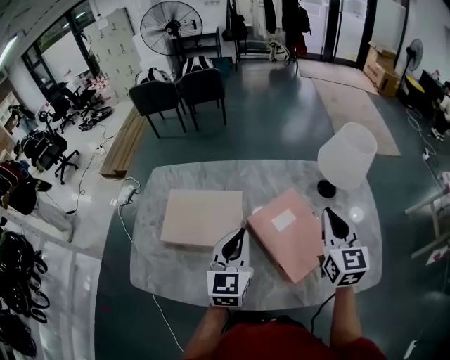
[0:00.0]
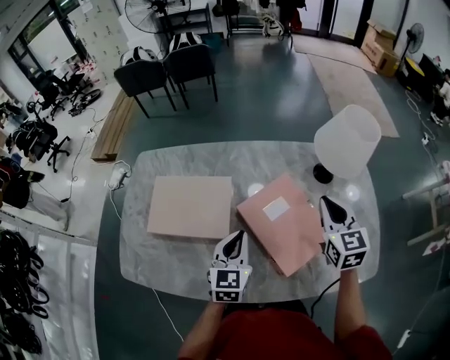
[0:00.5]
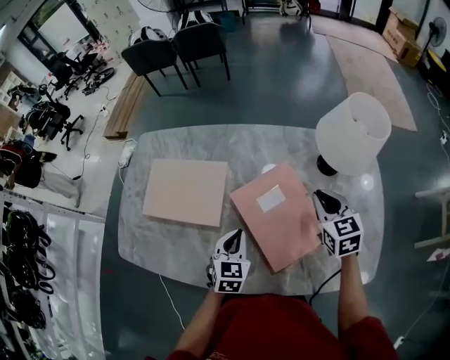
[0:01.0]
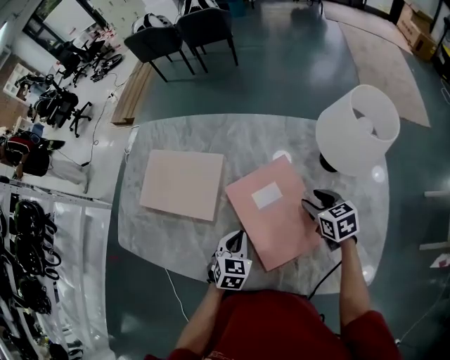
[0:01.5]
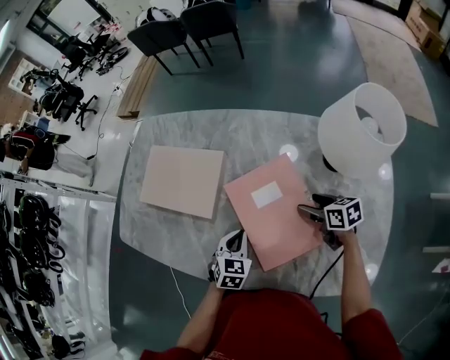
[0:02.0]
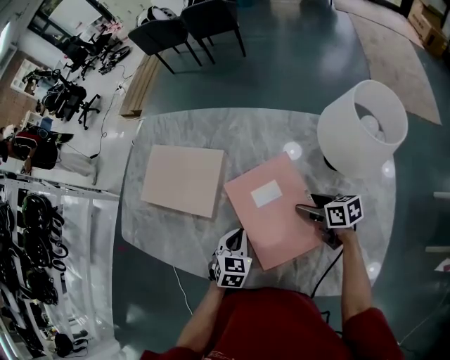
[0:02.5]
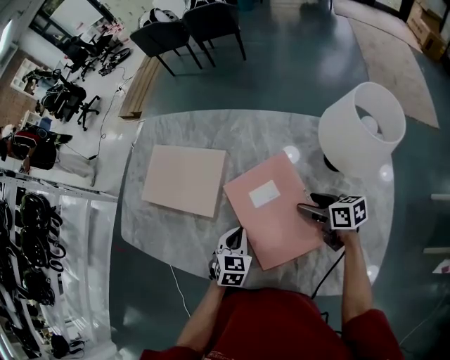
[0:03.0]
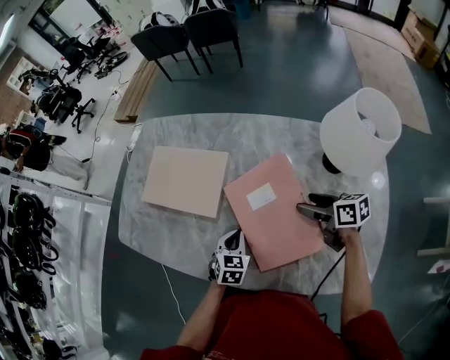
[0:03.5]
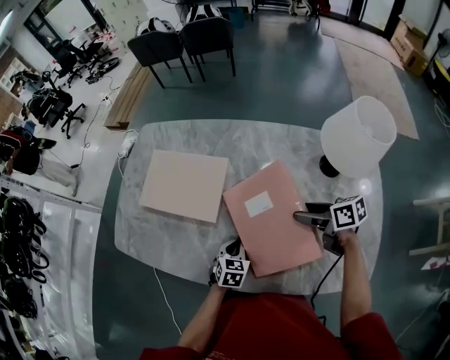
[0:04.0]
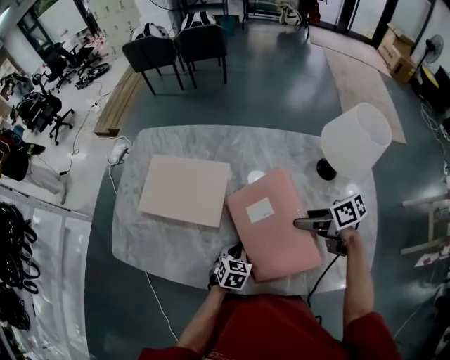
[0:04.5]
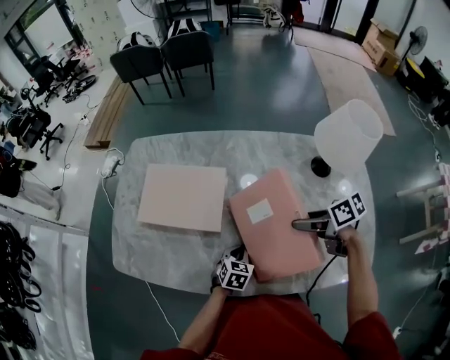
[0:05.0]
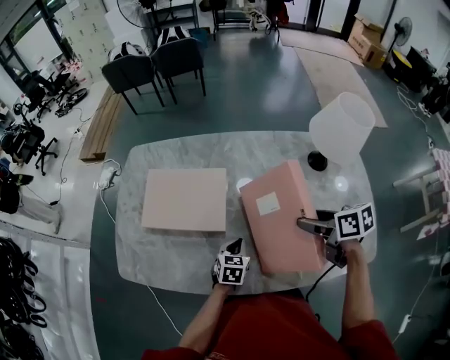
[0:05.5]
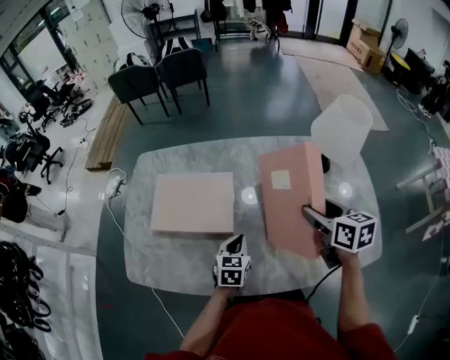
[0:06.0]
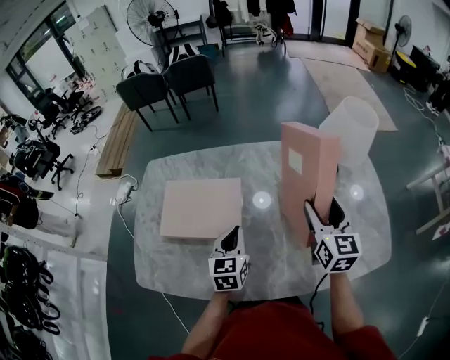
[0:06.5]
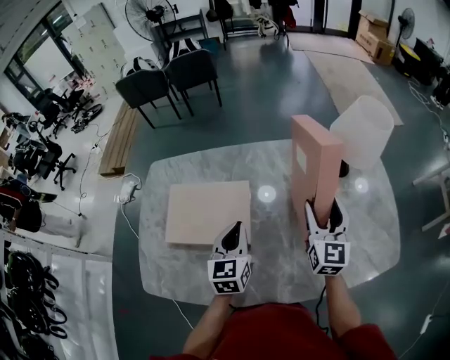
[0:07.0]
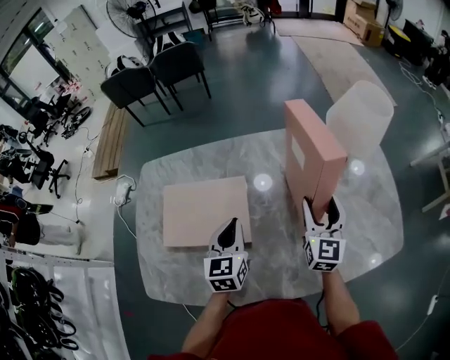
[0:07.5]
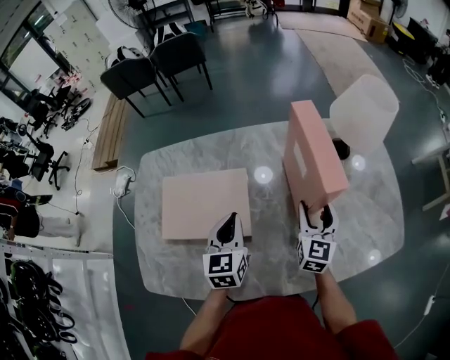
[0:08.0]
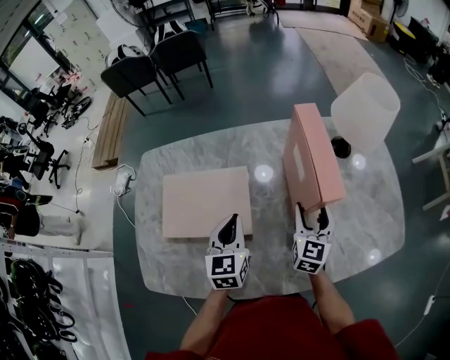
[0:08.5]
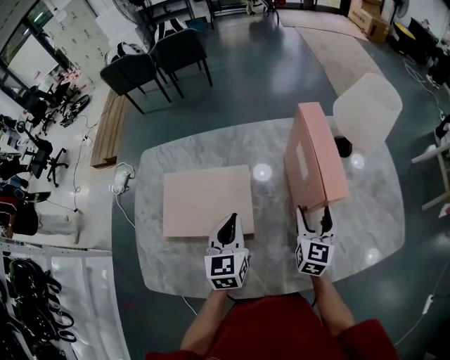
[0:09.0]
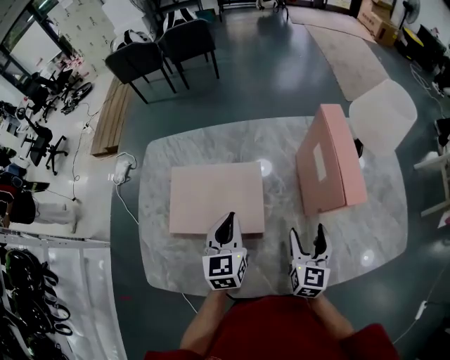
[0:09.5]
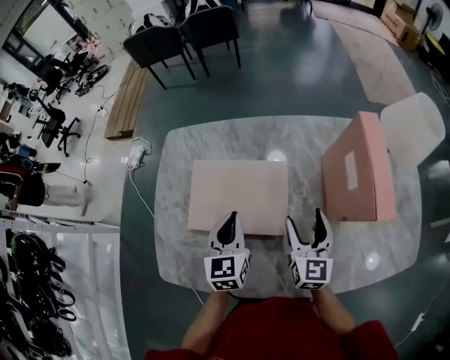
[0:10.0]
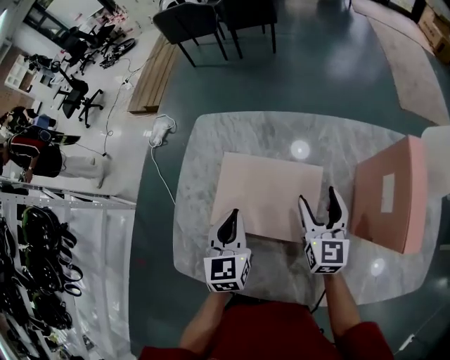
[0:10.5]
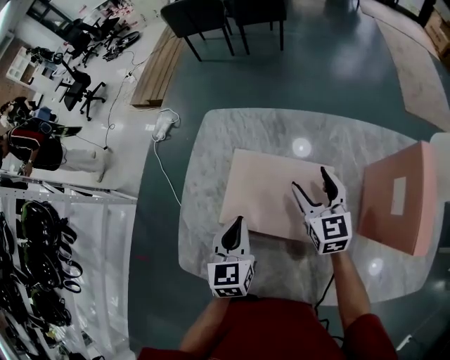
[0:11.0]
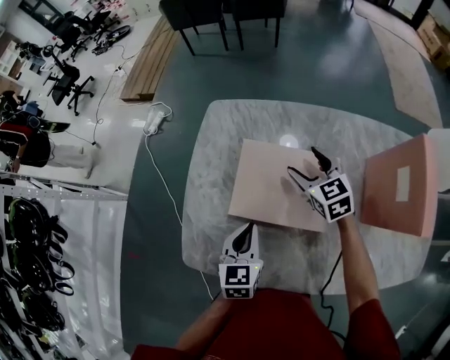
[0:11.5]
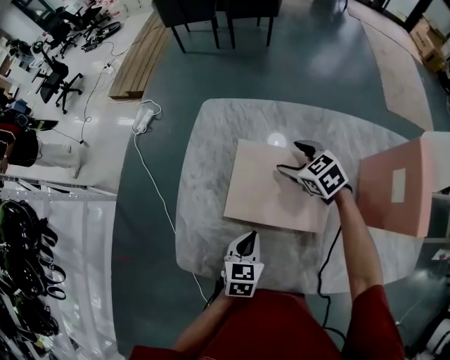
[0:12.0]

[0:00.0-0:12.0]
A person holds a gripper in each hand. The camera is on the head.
0:00.0 to 0:02.0: Both grippers move downward, approximately 25 cm. The right gripper swivels some 60 degrees, and opens. The left gripper points its fingers approximately 40 degrees further downward.
0:02.0 to 0:04.0: The right gripper is displaced upward and to the left by some 10 cm; the left gripper heads to the left, covering some 5 cm.
0:04.0 to 0:06.0: The right gripper shifts approximately 15 cm upward, and changes its angle by some 40 degrees; the left gripper is displaced upward by approximately 10 cm.
0:06.0 to 0:08.0: The right gripper heads downward, covering about 10 cm, and swivels approximately 40 degrees. The left gripper shifts approximately 15 cm upward, forward and to the left.
0:08.0 to 0:10.0: The two grippers go approximately 15 cm to the left.
0:10.0 to 0:12.0: The right gripper travels forward, to the left and downward by about 30 cm, and tips its fingers downward by some 30 degrees, while the left gripper travels downward, to the left and backward by roughly 15 cm, and turns by approximately 20 degrees.

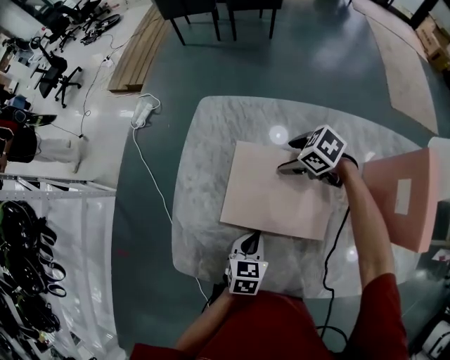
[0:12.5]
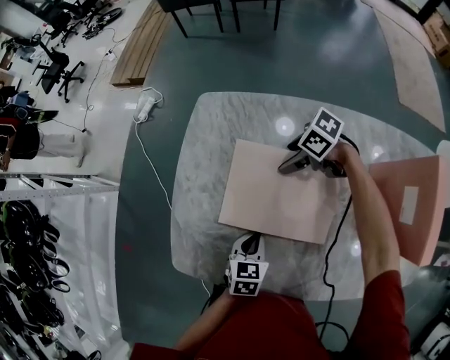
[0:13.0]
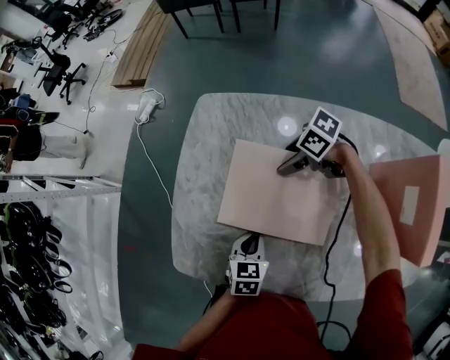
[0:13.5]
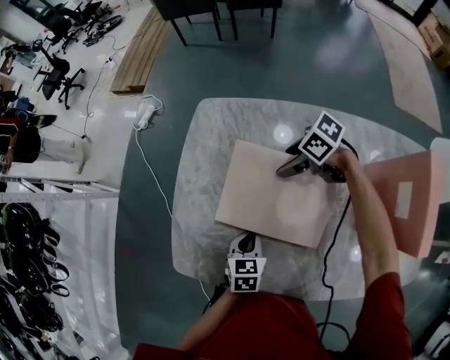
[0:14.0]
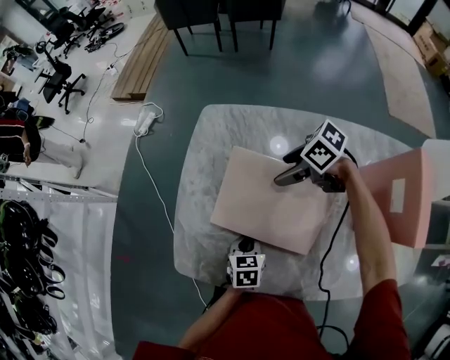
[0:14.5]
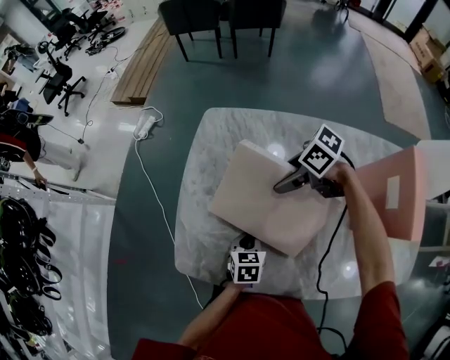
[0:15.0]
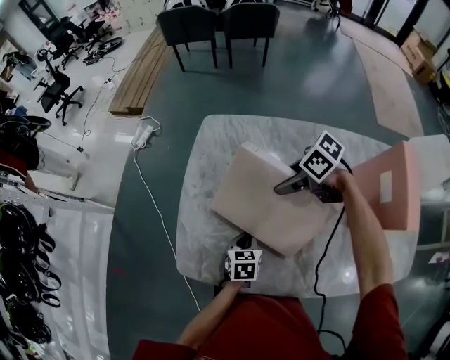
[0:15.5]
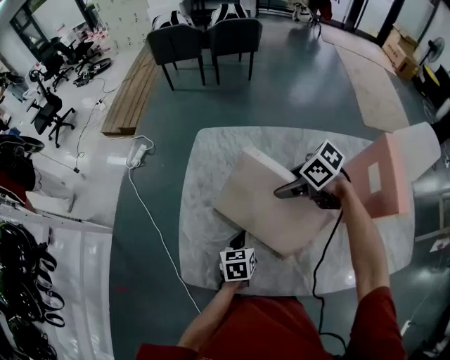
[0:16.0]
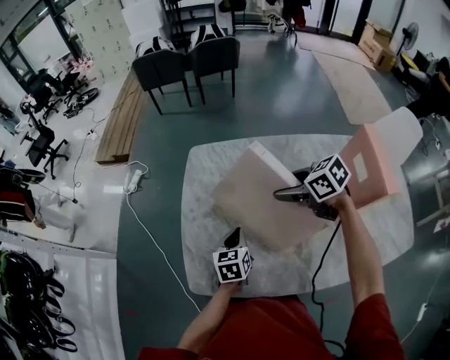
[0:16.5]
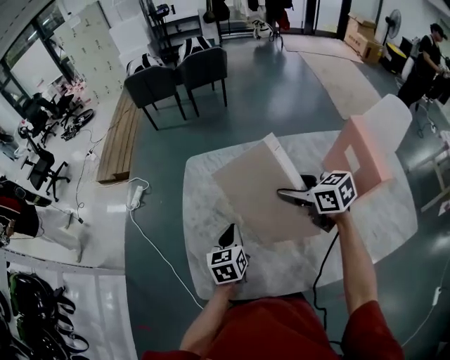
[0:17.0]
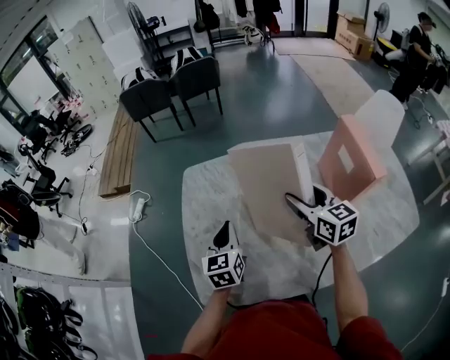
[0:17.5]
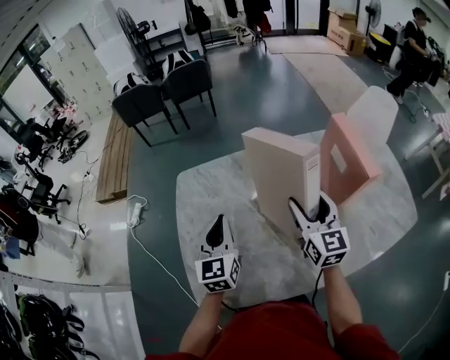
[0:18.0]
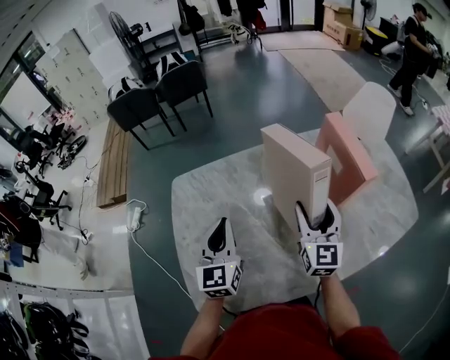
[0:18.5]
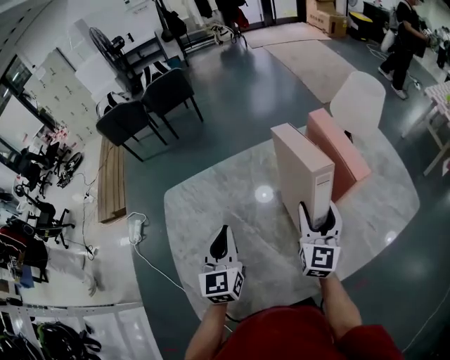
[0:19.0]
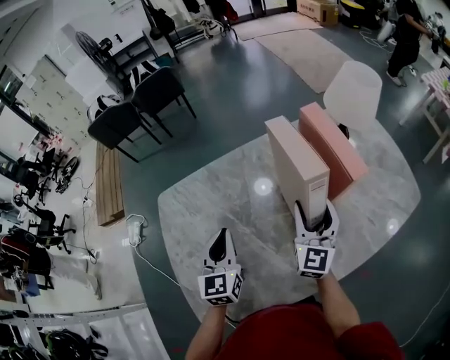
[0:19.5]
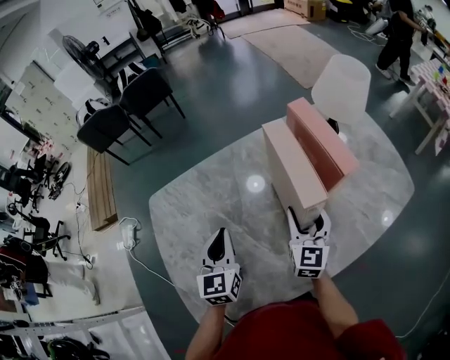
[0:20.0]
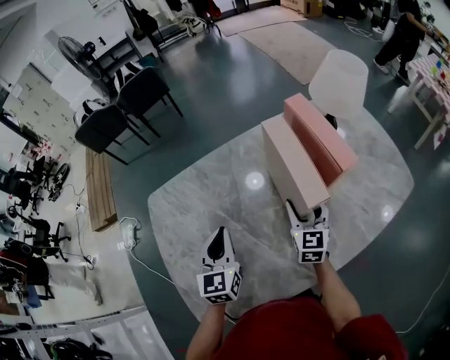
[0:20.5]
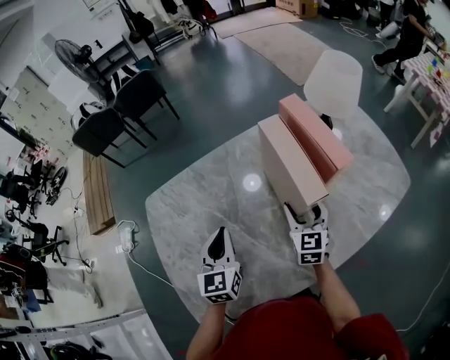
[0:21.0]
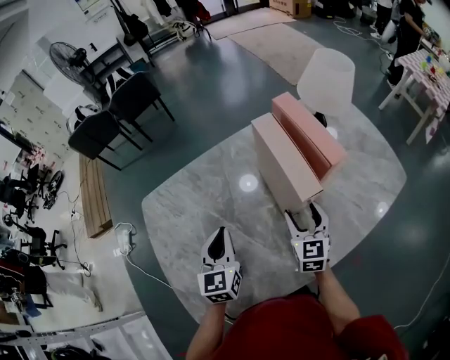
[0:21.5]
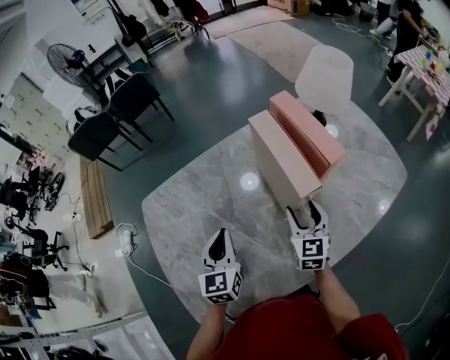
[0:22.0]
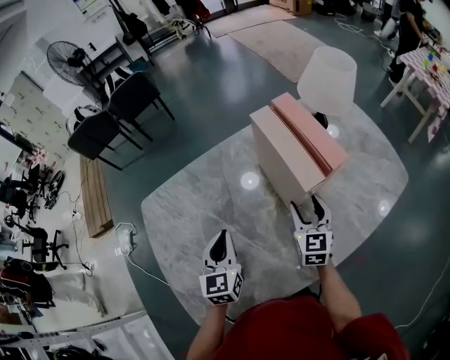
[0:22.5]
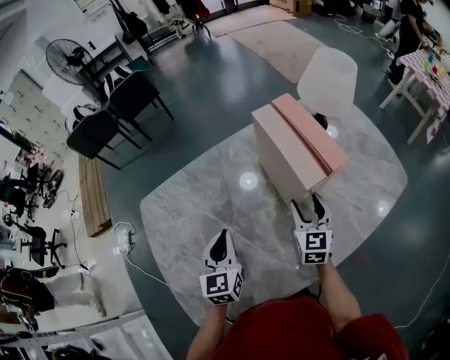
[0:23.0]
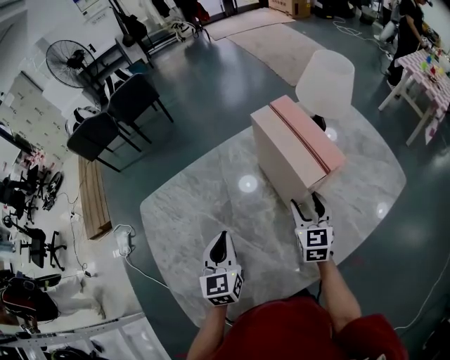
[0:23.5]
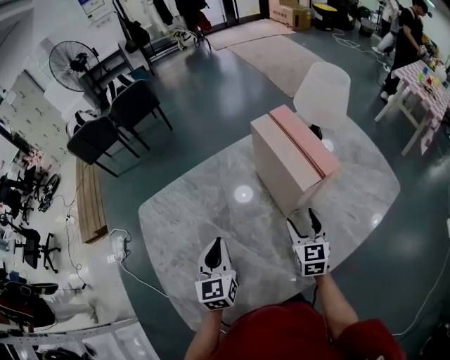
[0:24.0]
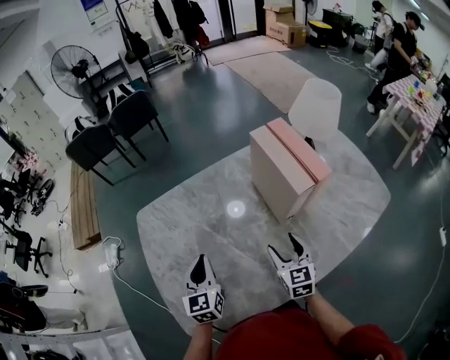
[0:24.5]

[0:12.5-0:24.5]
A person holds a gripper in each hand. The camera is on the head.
0:12.5 to 0:14.5: The right gripper shifts roughly 5 cm upward, and turns by some 20 degrees.
0:14.5 to 0:16.5: Both grippers move upward, approximately 10 cm. The right gripper swivels about 30 degrees.
0:16.5 to 0:18.5: The left gripper is displaced upward by roughly 20 cm, and turns by roughly 40 degrees, while the right gripper changes place by roughly 20 cm, and angles its fingers upward, by about 40 degrees.
0:18.5 to 0:20.5: The left gripper travels to the right and downward by some 10 cm, while the right gripper goes about 15 cm downward and to the right.
0:20.5 to 0:22.5: The grippers make only small movements.
0:22.5 to 0:24.5: Both grippers move backward and to the left, about 10 cm.

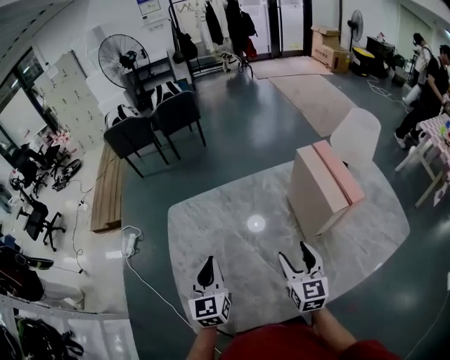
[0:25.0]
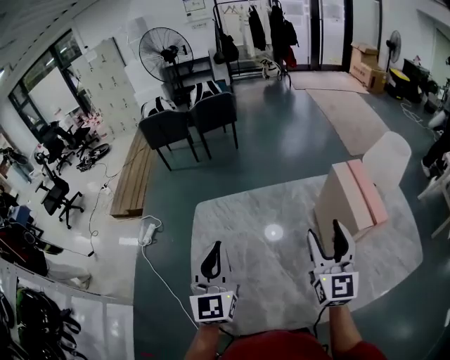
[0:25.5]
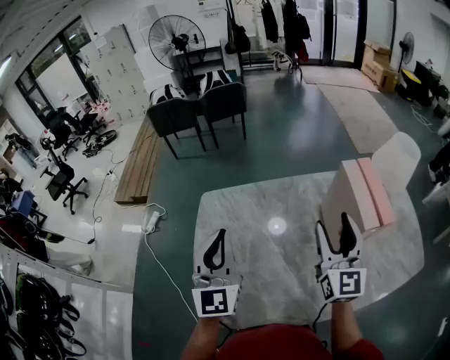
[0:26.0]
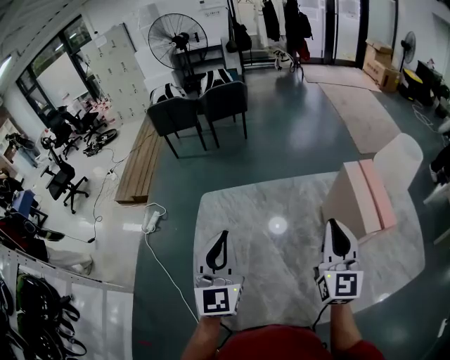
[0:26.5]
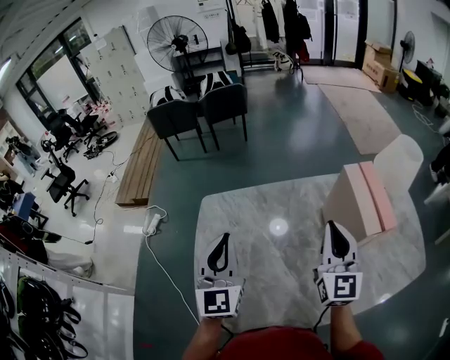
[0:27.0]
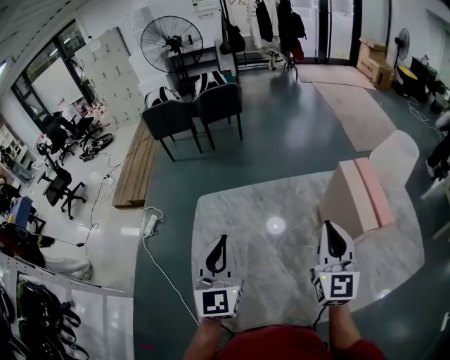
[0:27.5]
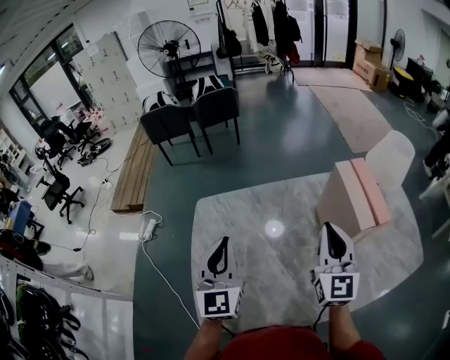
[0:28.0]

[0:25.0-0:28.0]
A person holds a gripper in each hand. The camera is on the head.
0:25.0 to 0:26.5: The left gripper travels upward by some 10 cm. The right gripper moves upward and forward, some 15 cm, and closes up.
0:26.5 to 0:28.0: The grippers make only small movements.
